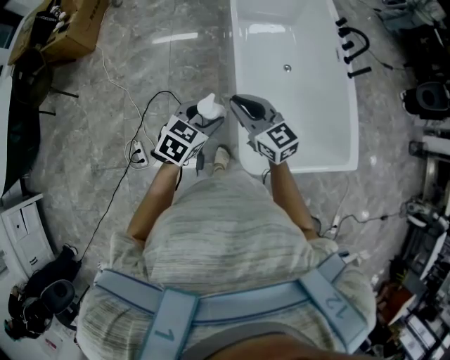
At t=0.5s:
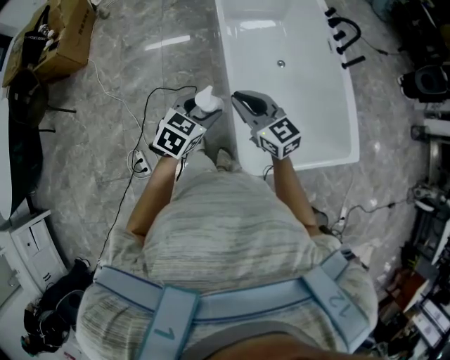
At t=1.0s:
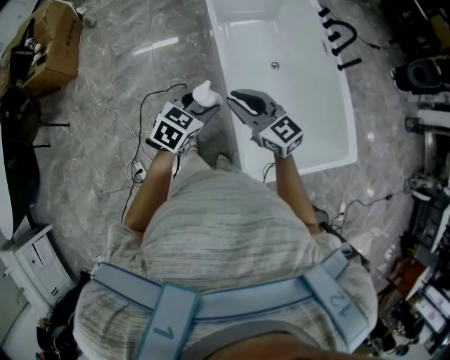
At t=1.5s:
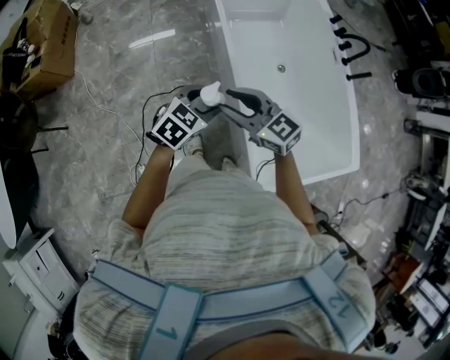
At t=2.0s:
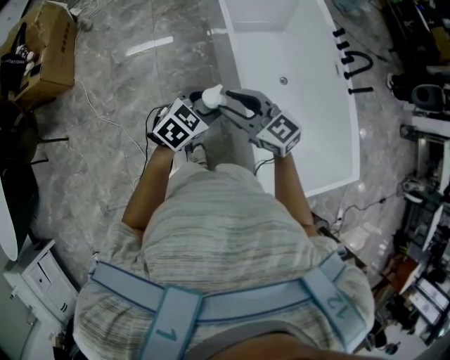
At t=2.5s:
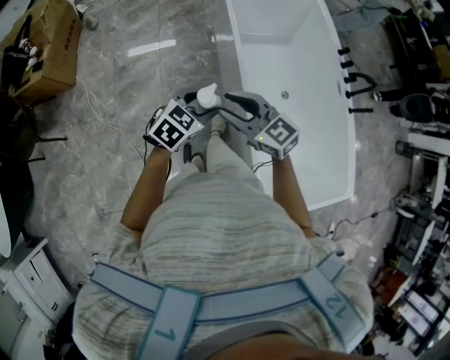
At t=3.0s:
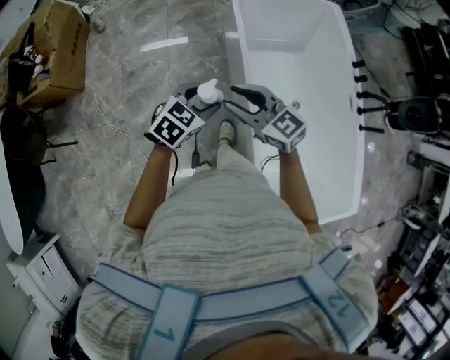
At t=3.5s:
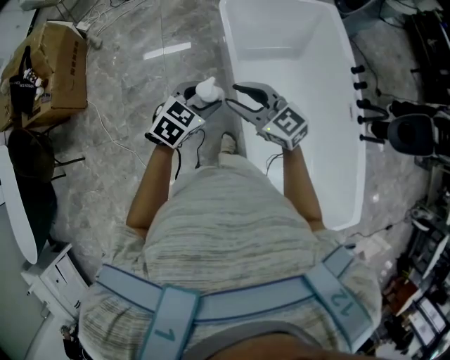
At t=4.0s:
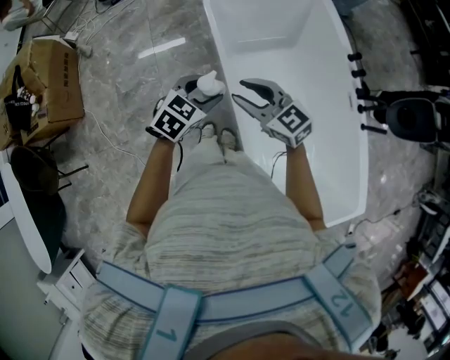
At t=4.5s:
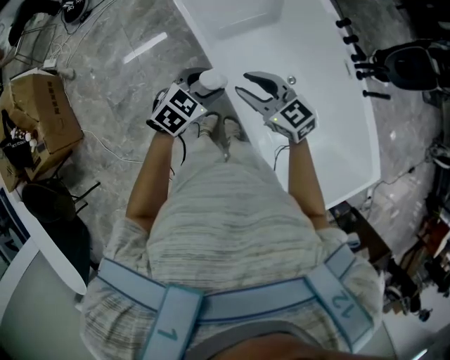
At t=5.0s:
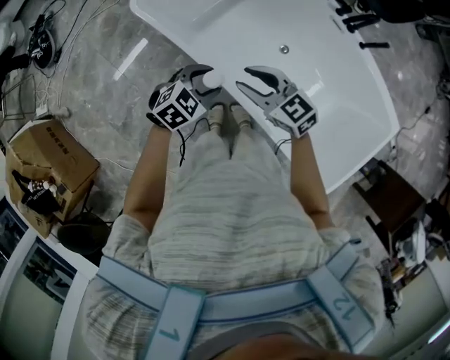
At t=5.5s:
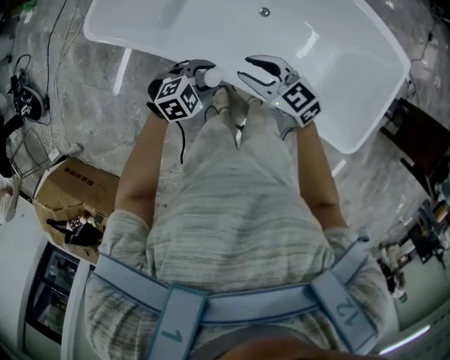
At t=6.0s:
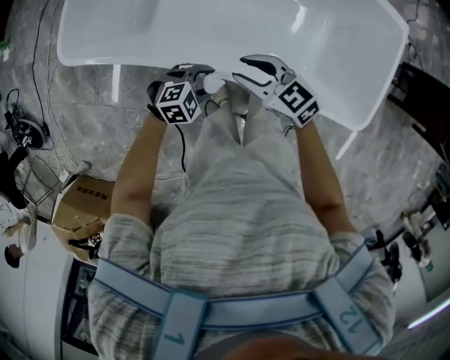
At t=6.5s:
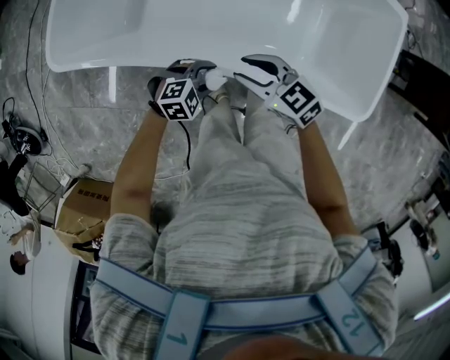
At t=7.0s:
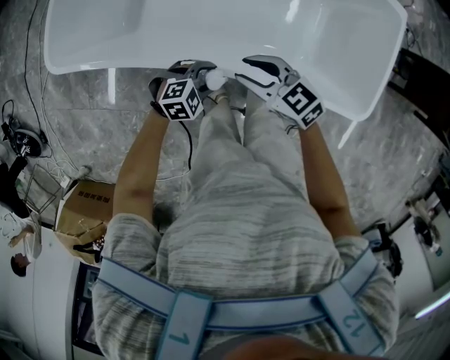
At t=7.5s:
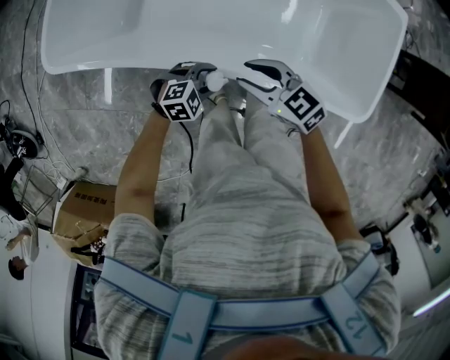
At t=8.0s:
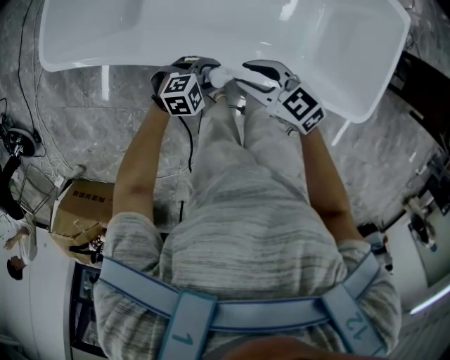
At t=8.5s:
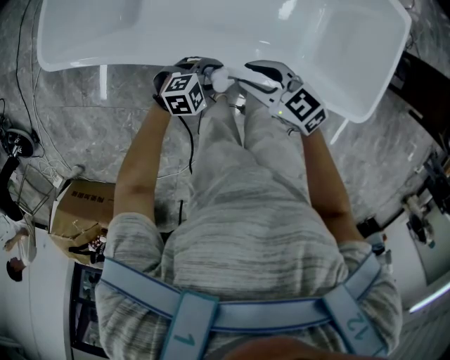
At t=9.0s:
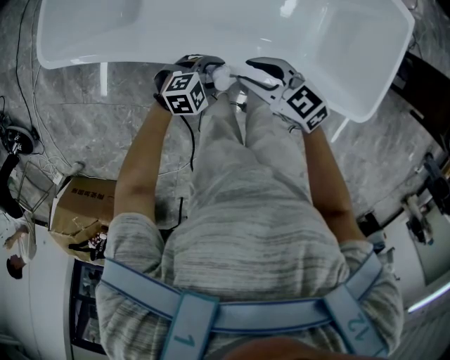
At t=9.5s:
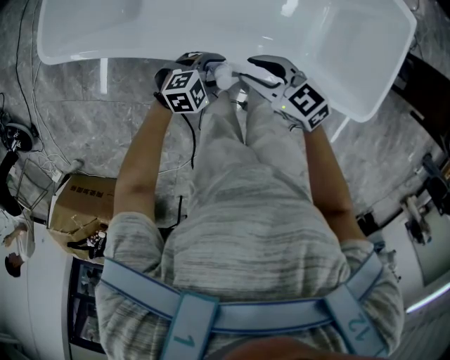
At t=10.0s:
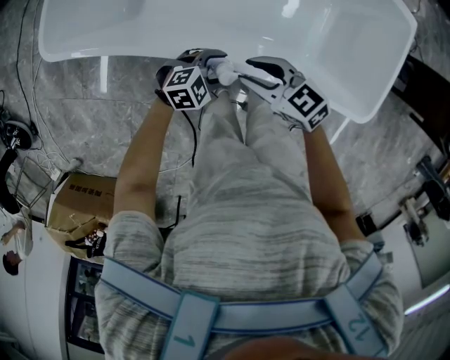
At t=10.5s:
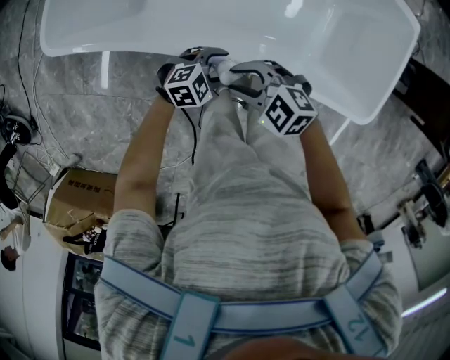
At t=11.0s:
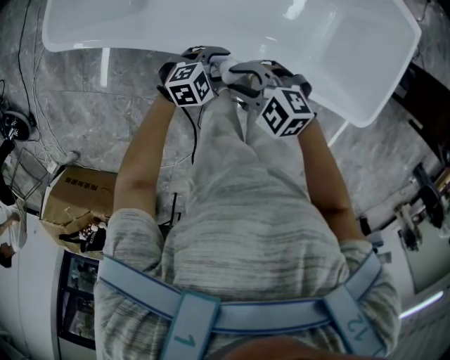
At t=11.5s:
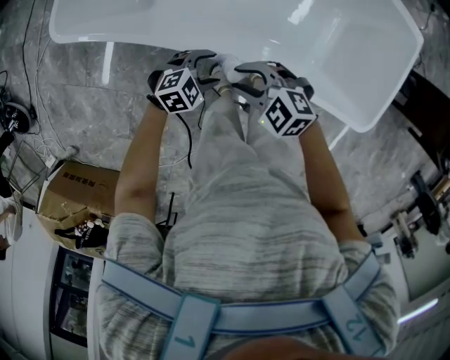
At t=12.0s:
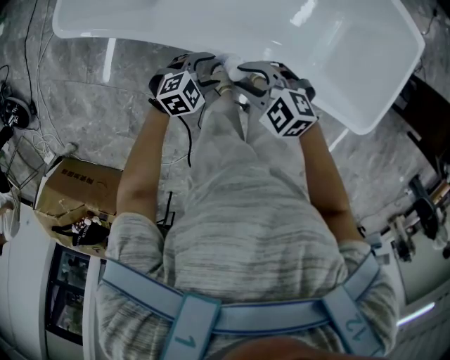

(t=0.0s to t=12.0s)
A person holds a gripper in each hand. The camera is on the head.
t=0.0s - t=2.0s: The left gripper goes about 30 cm forward, and changes its angle by about 20 degrees, while the right gripper goes about 30 cm forward and to the left, and opens its fingers.
t=2.0s - t=4.0s: Both grippers travel together forward, about 35 cm.
t=4.0s - t=6.0s: Both grippers move downward, some 20 cm. The right gripper rotates about 60 degrees. The left gripper rotates about 90 degrees.
t=6.0s - t=8.0s: The left gripper is displaced downward by about 5 cm.
t=8.0s - t=10.0s: The grippers stay close to where they were, moving slightly.
t=10.0s - t=12.0s: The right gripper changes place by about 5 cm, and swivels roughly 40 degrees. The left gripper shifts by about 5 cm.

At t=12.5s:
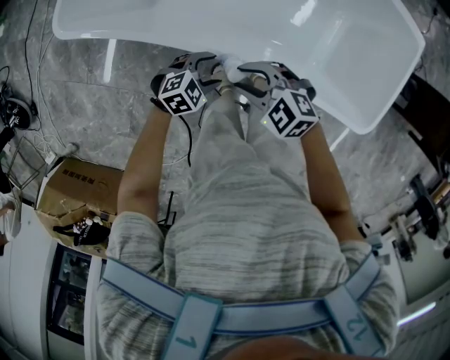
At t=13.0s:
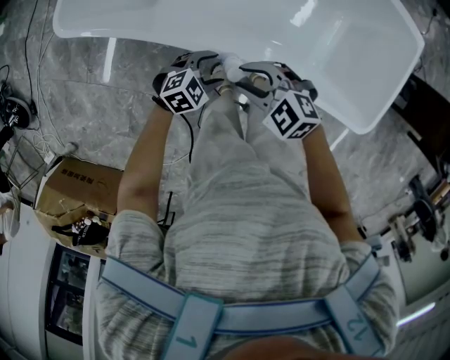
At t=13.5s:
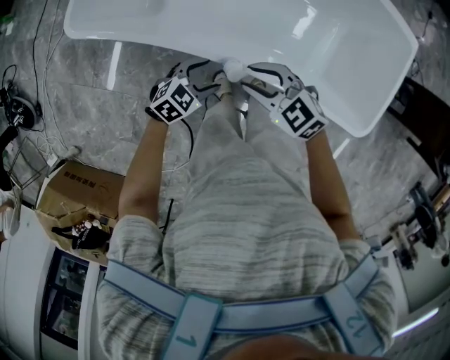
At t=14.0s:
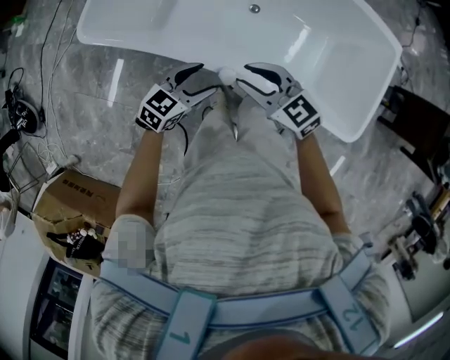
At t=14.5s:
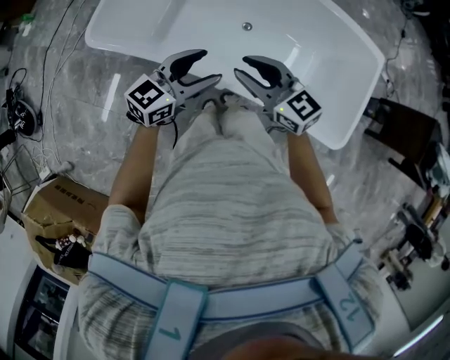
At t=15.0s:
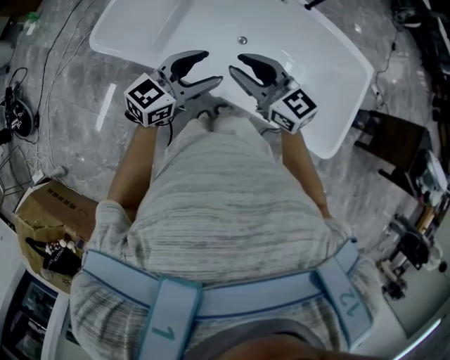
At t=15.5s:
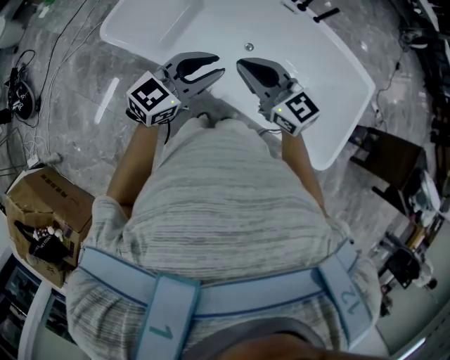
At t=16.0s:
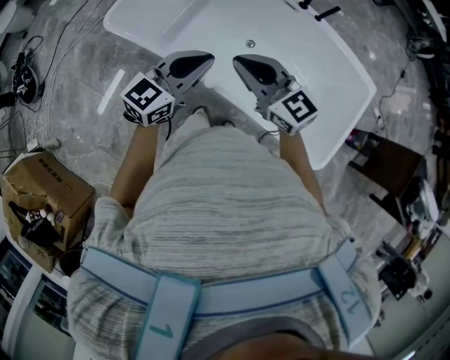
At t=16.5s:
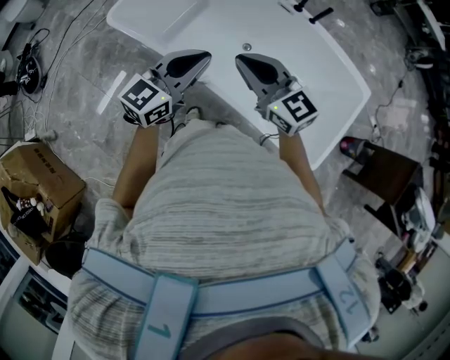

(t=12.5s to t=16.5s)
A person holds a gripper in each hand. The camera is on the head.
t=12.5s - t=14.5s: The two grippers go roughly 25 cm upward. The right gripper tilts its fingers approximately 30 degrees upward. The left gripper tips its fingers upward by about 40 degrees.
t=14.5s - t=16.5s: The two grippers go about 15 cm upward, to the right and backward. The right gripper closes its fingers. Meanwhile the left gripper turns by approximately 20 degrees, and closes its fingers.

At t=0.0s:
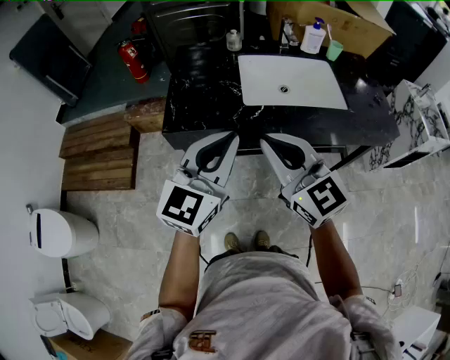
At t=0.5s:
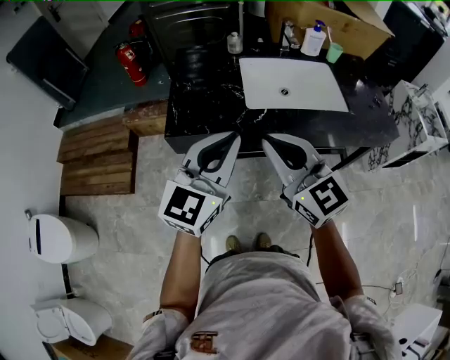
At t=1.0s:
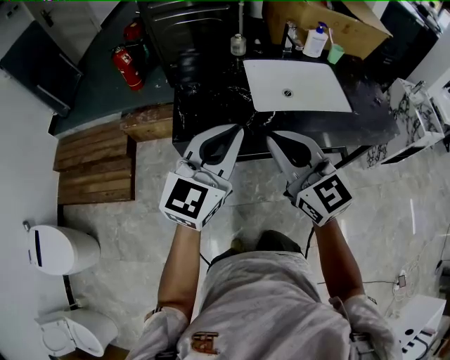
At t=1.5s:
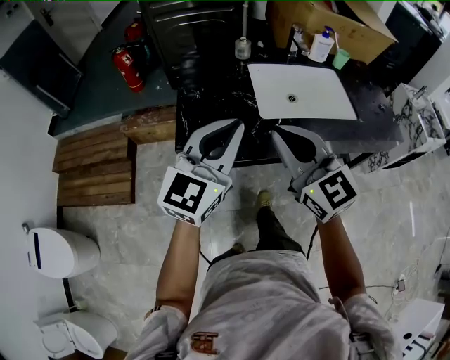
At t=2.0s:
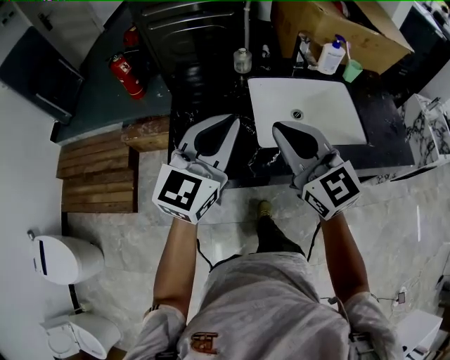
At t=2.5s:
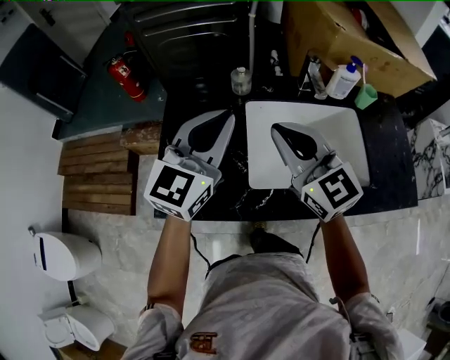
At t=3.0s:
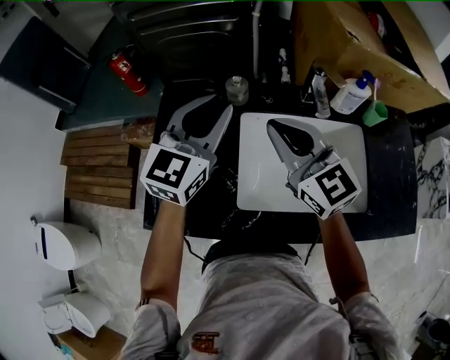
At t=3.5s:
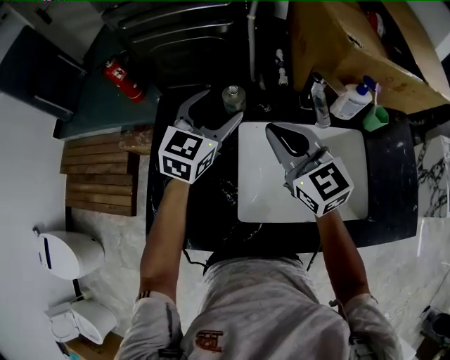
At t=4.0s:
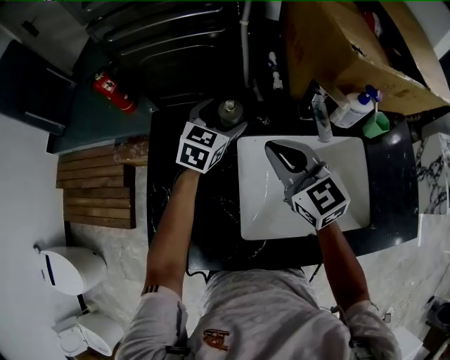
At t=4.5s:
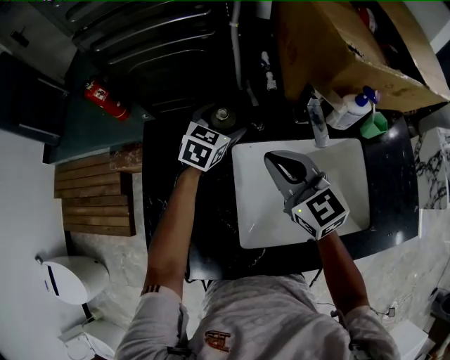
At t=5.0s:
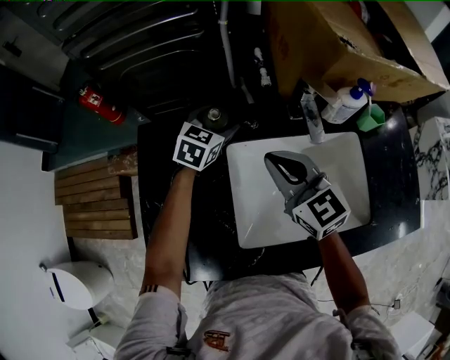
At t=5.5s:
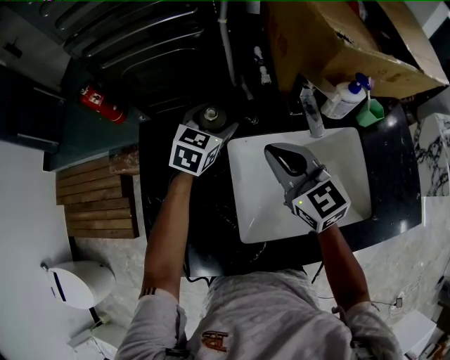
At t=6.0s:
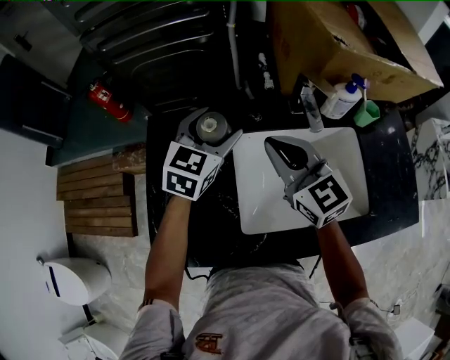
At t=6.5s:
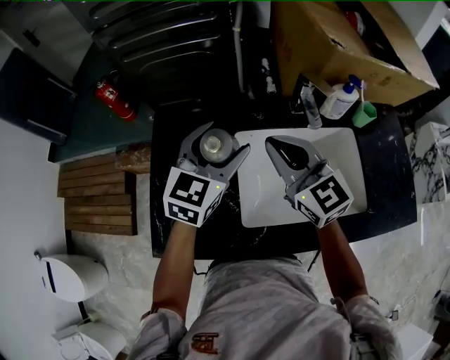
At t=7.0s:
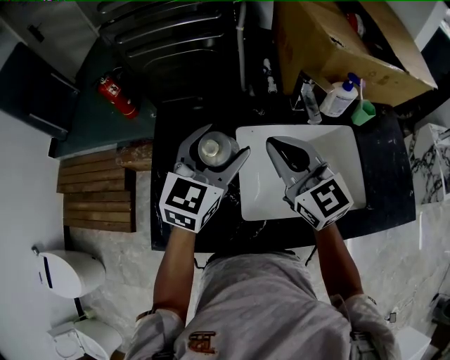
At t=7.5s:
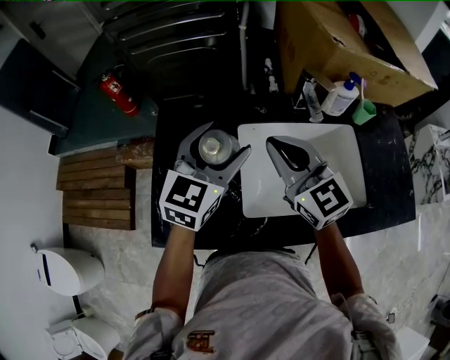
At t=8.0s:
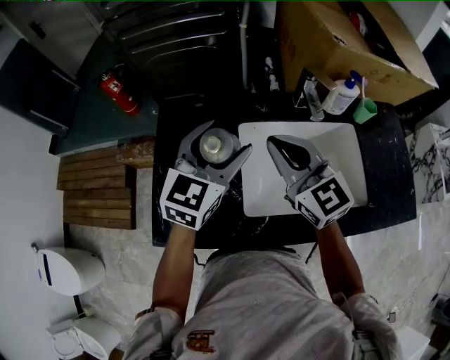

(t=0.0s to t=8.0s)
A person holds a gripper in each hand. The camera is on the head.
t=0.0s - t=2.0s: Both grippers move forward, some 20 cm.
t=2.0s - t=4.0s: The right gripper goes roughly 30 cm forward, while the left gripper moves forward and downward, about 40 cm, turns by about 30 degrees, and opens its fingers.
t=4.0s - t=6.0s: The left gripper is displaced upward and backward by about 10 cm.
t=6.0s - t=8.0s: The left gripper heads backward and upward, covering some 15 cm; the right gripper shifts some 5 cm backward.

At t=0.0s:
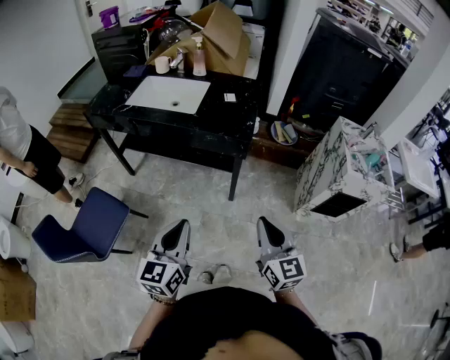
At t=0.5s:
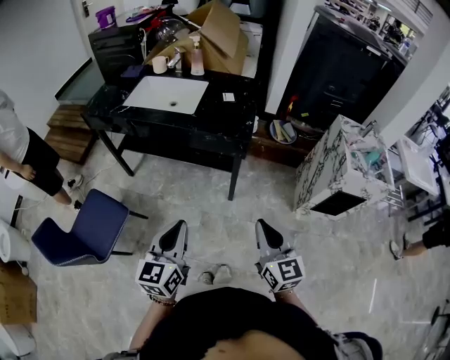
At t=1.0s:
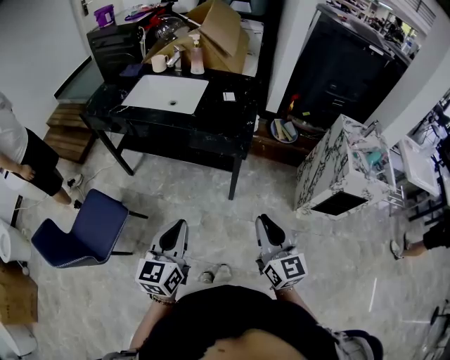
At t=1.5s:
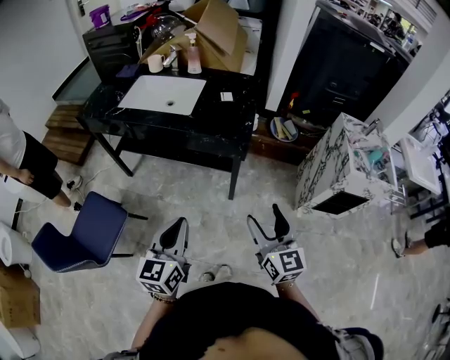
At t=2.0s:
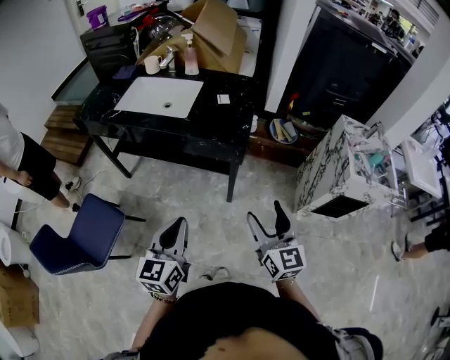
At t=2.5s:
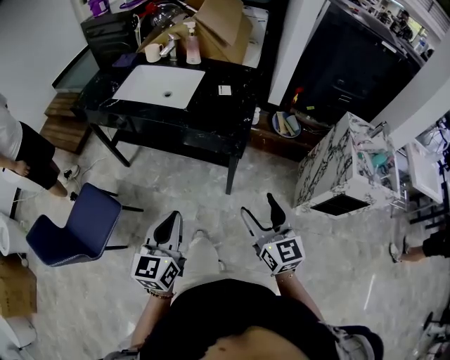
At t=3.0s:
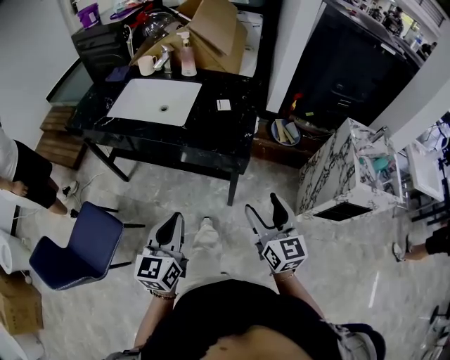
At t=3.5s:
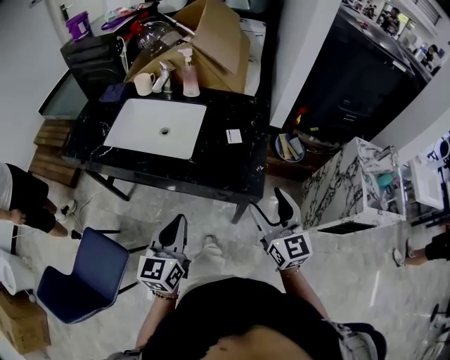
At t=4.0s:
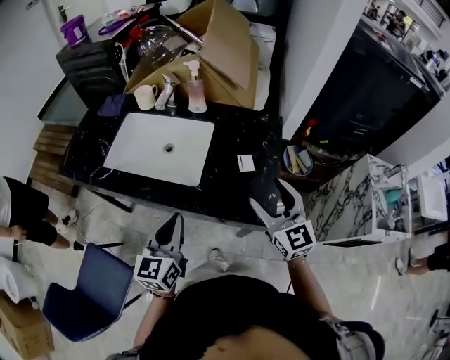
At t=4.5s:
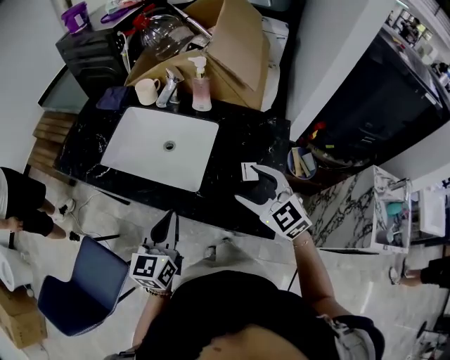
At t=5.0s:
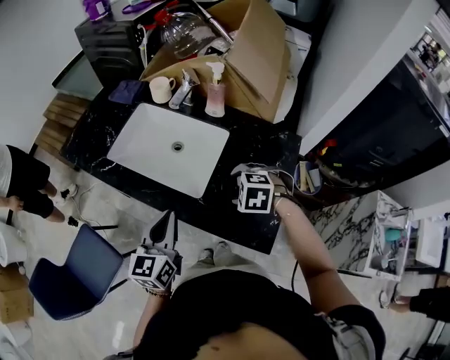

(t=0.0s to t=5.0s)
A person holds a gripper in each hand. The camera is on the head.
t=0.0s - t=2.5s: The grippers both shift forward by about 10 cm. The right gripper opens.
t=2.5s - t=5.0s: The two grippers travel together, some 40 cm. The right gripper tips its fingers downward by about 60 degrees.
